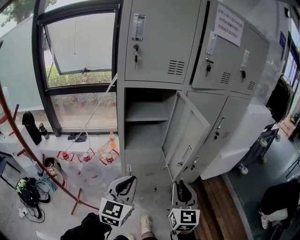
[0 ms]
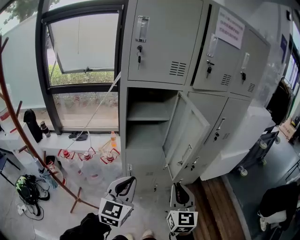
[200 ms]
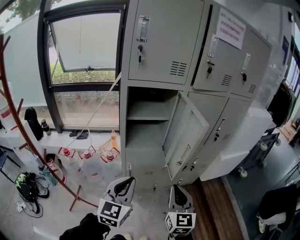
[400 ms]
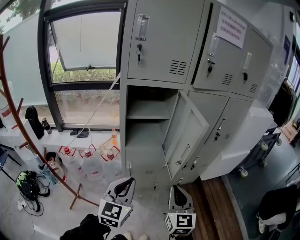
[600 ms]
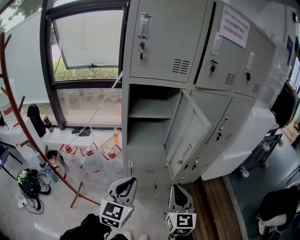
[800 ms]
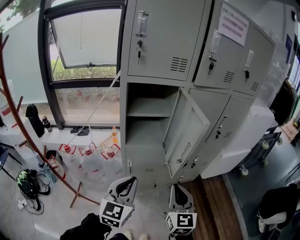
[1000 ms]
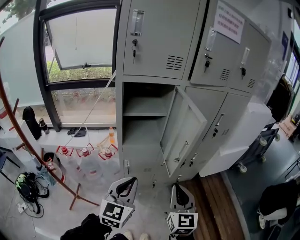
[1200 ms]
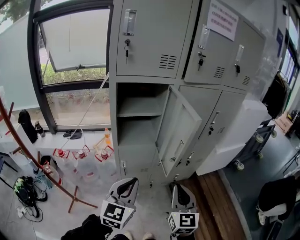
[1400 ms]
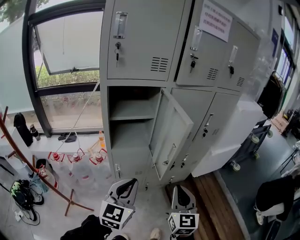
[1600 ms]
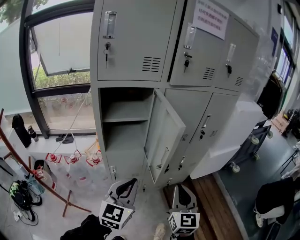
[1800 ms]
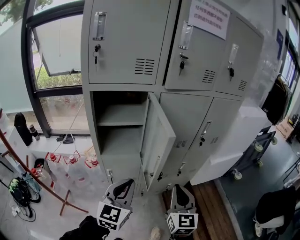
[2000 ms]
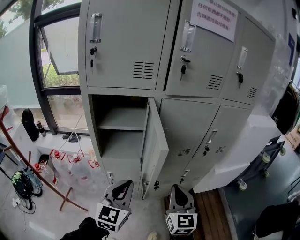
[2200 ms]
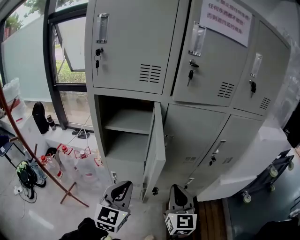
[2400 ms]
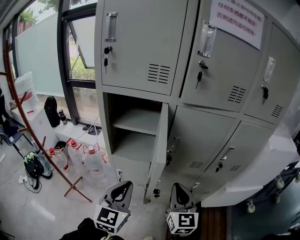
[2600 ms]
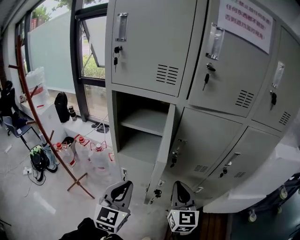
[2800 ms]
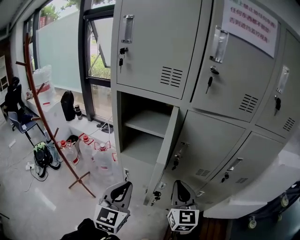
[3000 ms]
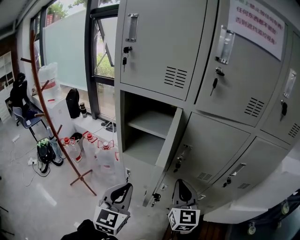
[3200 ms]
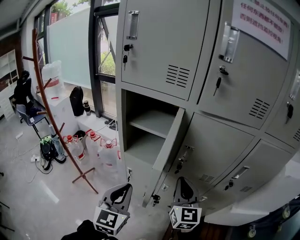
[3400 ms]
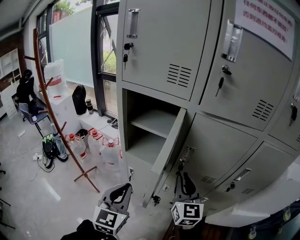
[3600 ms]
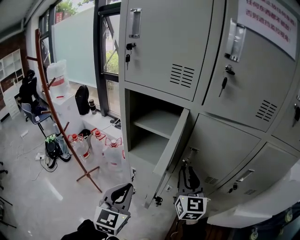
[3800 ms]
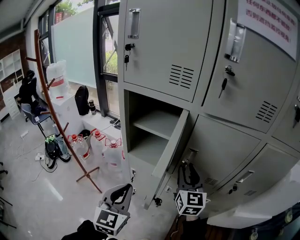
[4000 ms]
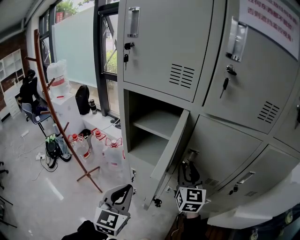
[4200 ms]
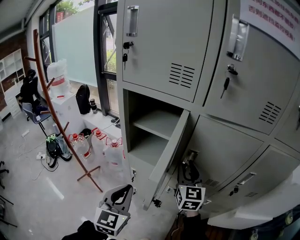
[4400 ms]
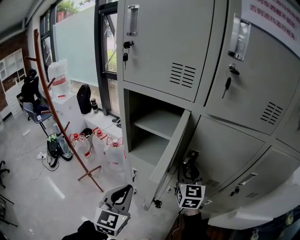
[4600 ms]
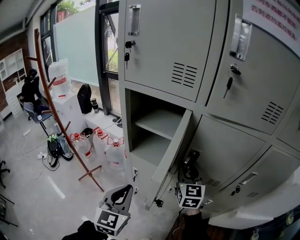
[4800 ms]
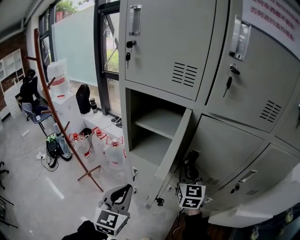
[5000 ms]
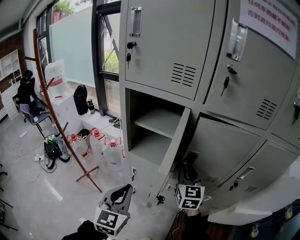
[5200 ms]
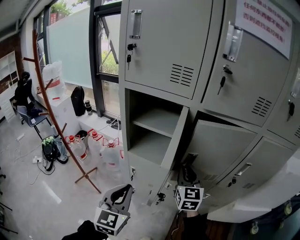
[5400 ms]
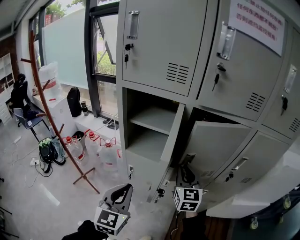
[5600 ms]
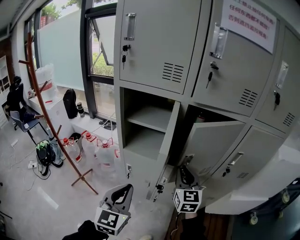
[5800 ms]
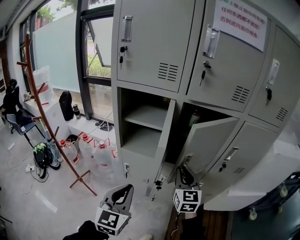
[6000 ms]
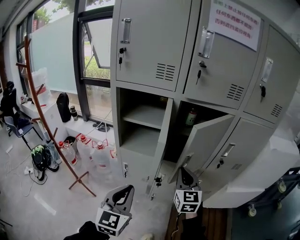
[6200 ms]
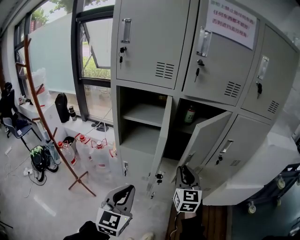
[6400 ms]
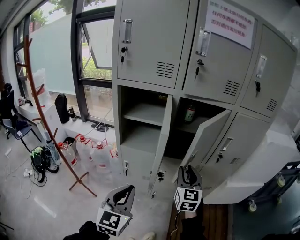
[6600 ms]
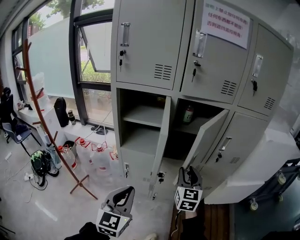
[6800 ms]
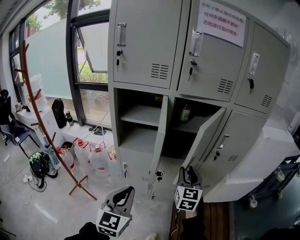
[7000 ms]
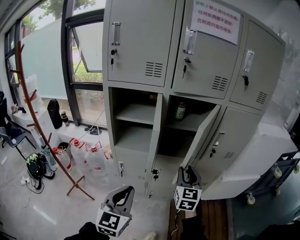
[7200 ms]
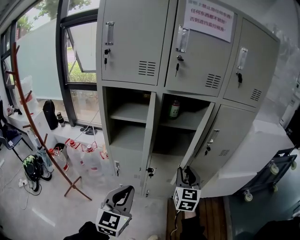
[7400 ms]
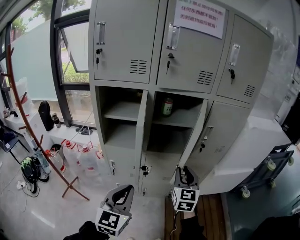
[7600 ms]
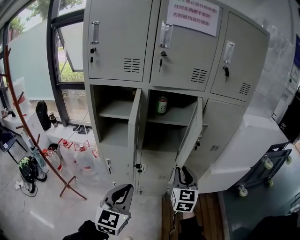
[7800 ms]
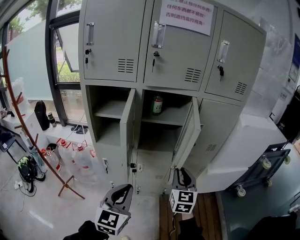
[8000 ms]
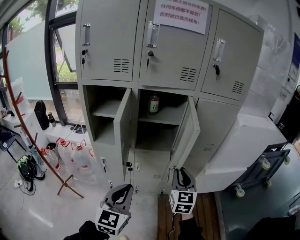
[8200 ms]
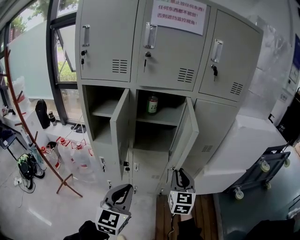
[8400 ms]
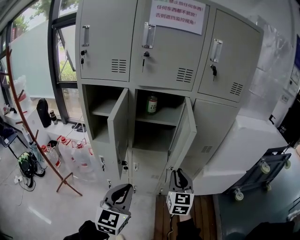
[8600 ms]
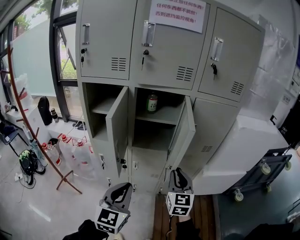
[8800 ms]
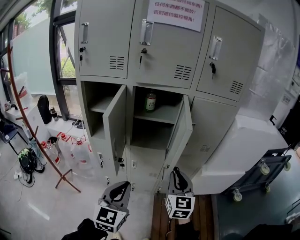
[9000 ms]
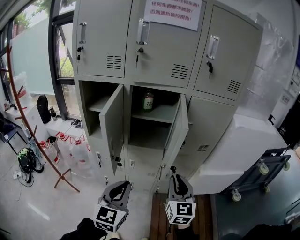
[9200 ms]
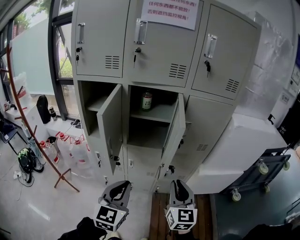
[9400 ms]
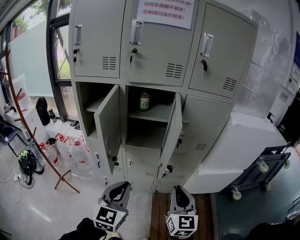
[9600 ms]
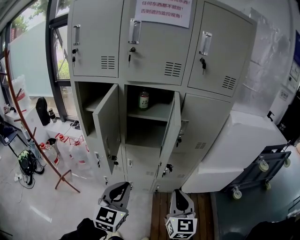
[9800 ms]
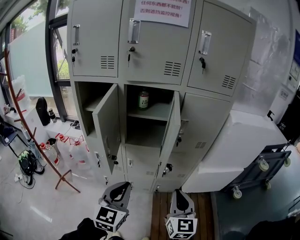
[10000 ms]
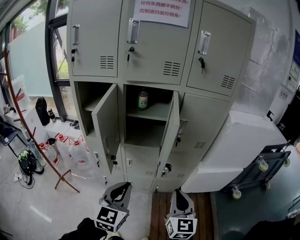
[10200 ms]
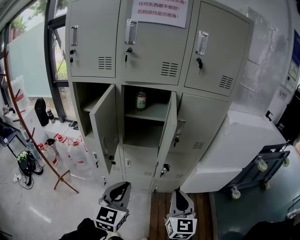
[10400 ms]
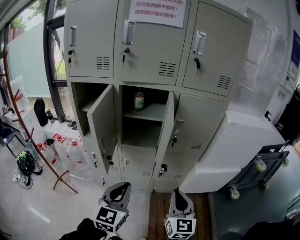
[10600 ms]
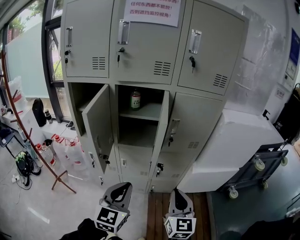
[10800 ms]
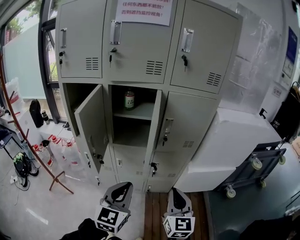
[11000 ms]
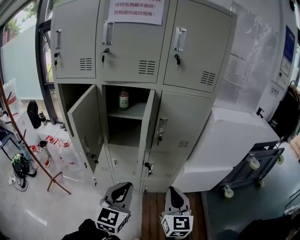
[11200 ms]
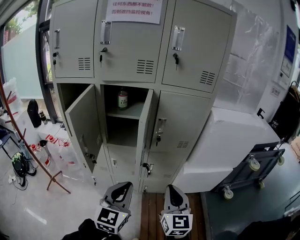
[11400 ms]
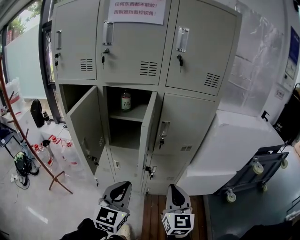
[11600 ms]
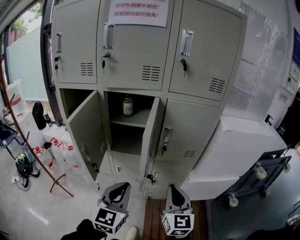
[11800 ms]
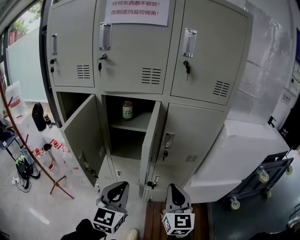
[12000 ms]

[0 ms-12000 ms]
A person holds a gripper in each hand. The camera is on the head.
0 ms to 1600 ms: Both grippers travel together to the right, approximately 5 cm.
1600 ms to 3000 ms: The left gripper moves approximately 15 cm, and turns by about 30 degrees, while the right gripper shifts by approximately 25 cm, and turns by approximately 30 degrees.
3000 ms to 4400 ms: The right gripper shifts about 15 cm forward, and opens.
4400 ms to 6000 ms: The right gripper shifts some 10 cm backward; the left gripper is displaced backward by some 10 cm.
6000 ms to 7600 ms: The right gripper travels to the right and backward by about 15 cm. Meanwhile the left gripper is displaced backward and to the right by about 10 cm.
7600 ms to 9000 ms: The two grippers go about 10 cm to the right.
9000 ms to 10400 ms: The right gripper goes roughly 10 cm backward and to the right.
10400 ms to 12000 ms: The right gripper shifts roughly 10 cm forward; the left gripper goes about 10 cm forward and to the right.

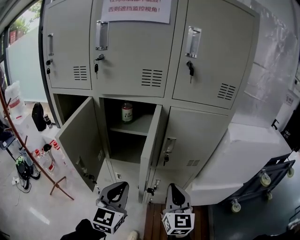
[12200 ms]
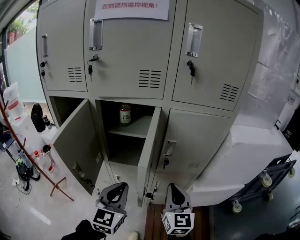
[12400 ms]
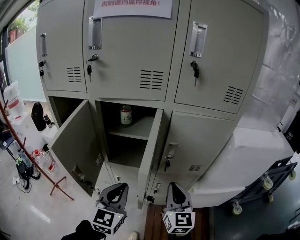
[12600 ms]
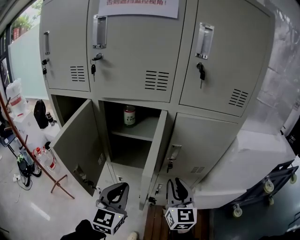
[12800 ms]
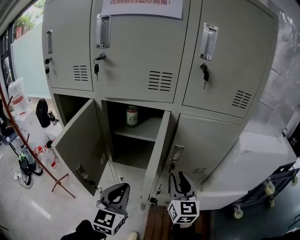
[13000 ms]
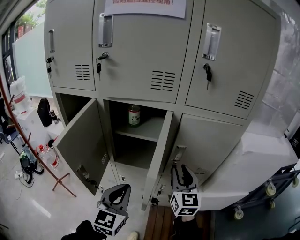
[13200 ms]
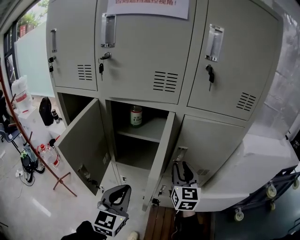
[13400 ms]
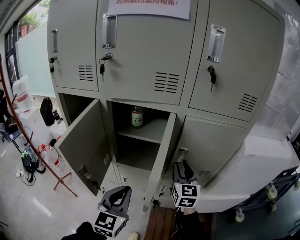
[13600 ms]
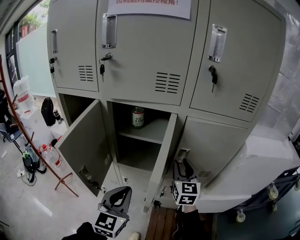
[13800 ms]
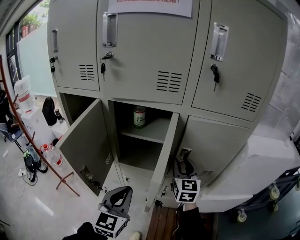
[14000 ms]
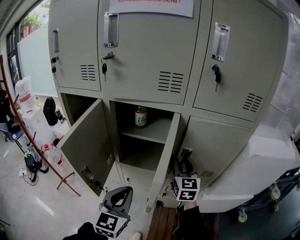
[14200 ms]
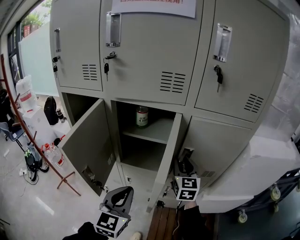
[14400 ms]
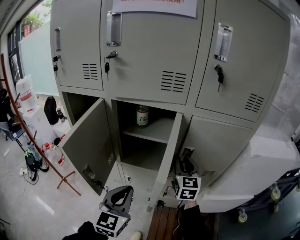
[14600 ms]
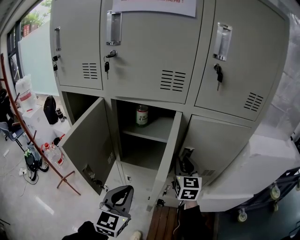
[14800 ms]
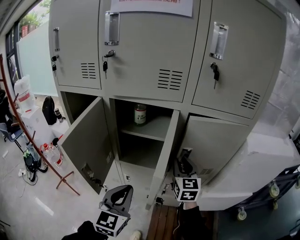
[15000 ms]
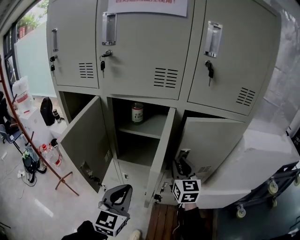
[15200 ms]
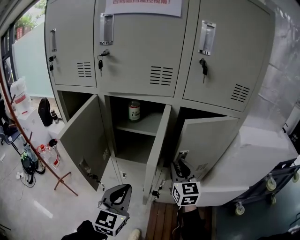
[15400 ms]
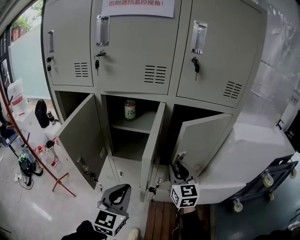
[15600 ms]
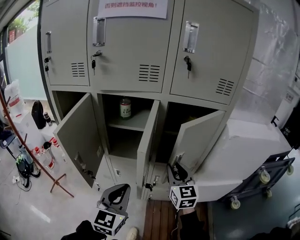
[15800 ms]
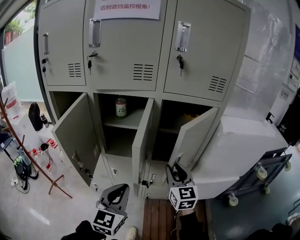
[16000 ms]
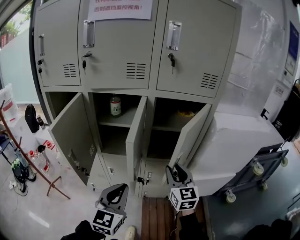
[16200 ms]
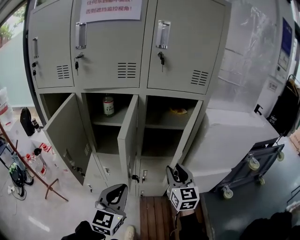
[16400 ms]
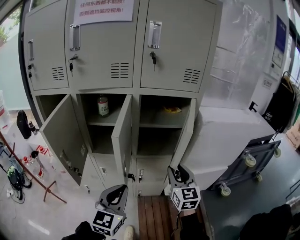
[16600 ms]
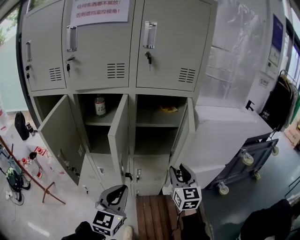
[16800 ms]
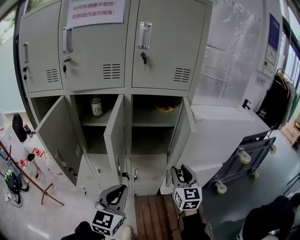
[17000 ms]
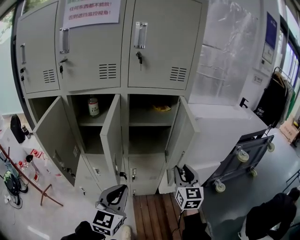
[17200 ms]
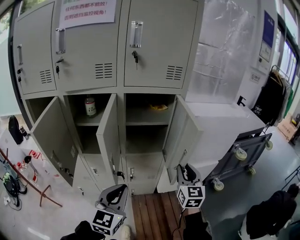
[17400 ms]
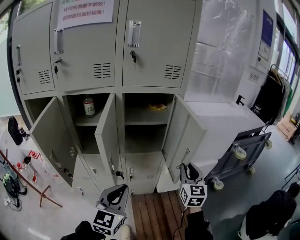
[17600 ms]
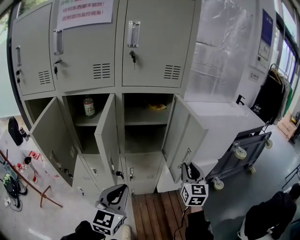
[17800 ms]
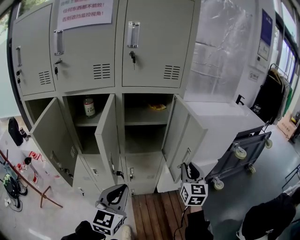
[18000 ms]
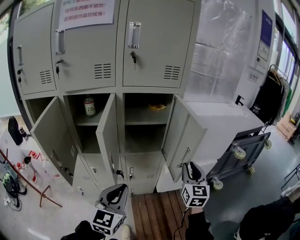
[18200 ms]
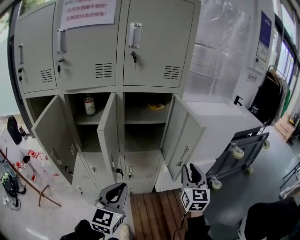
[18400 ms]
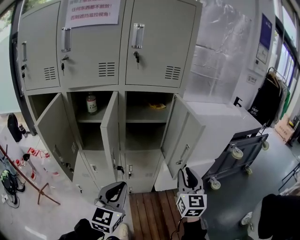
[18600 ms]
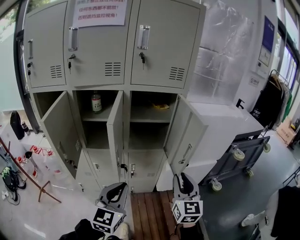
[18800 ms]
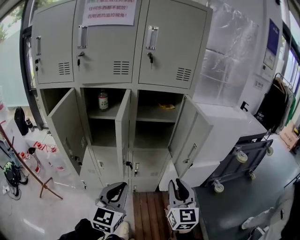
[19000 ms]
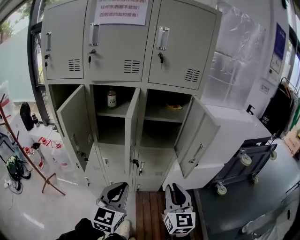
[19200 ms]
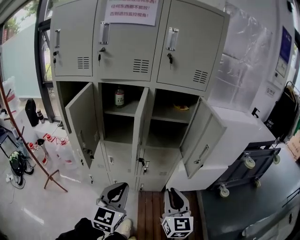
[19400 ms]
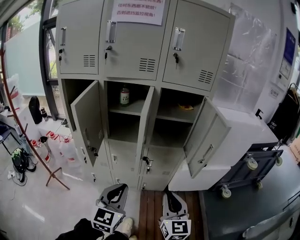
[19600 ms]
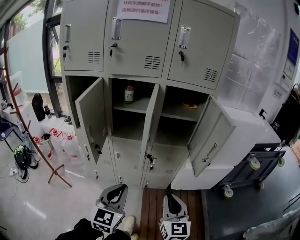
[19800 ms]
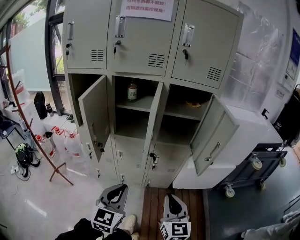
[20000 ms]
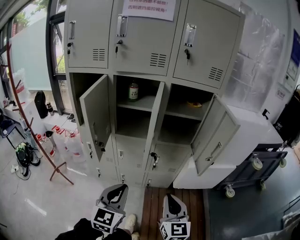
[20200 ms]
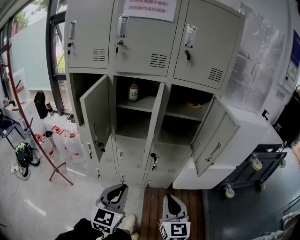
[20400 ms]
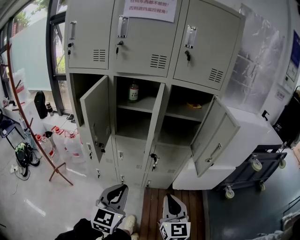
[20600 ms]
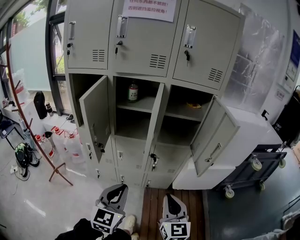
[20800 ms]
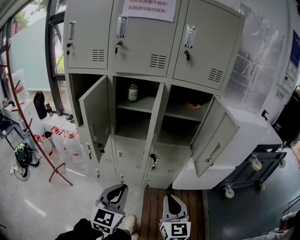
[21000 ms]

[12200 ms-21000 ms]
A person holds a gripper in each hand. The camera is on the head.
12200 ms to 13600 ms: The right gripper shifts approximately 20 cm forward, and opens up.
13600 ms to 15200 ms: The grippers stay close to where they were, moving slightly.
15200 ms to 16600 ms: The right gripper is displaced backward and to the right by about 20 cm; the left gripper travels to the right and backward by some 15 cm.
16600 ms to 18000 ms: The right gripper heads to the right, covering about 15 cm.
18000 ms to 19600 ms: The right gripper heads backward and to the left, covering roughly 25 cm. The left gripper is displaced backward and to the left by about 15 cm.
19600 ms to 21000 ms: The grippers make only small movements.

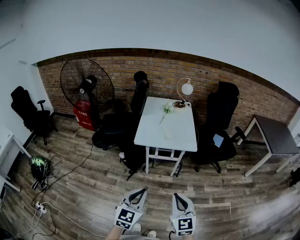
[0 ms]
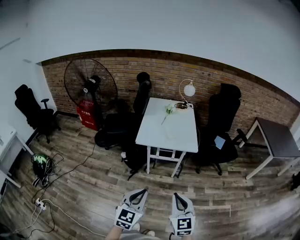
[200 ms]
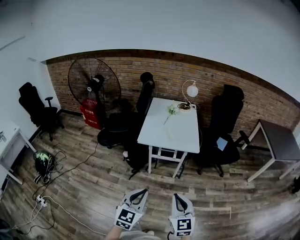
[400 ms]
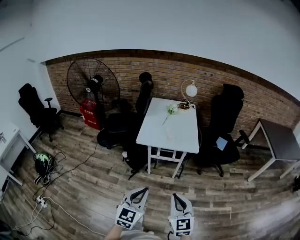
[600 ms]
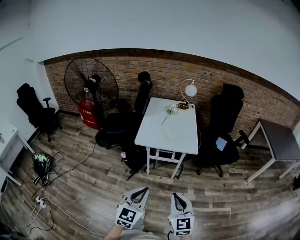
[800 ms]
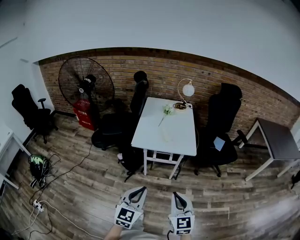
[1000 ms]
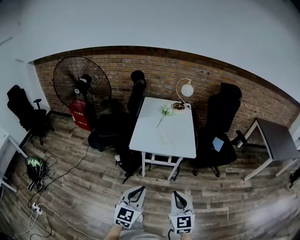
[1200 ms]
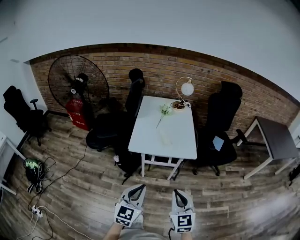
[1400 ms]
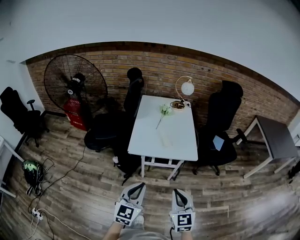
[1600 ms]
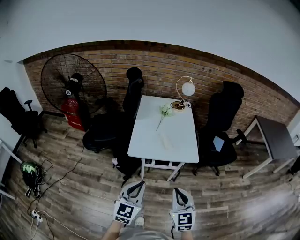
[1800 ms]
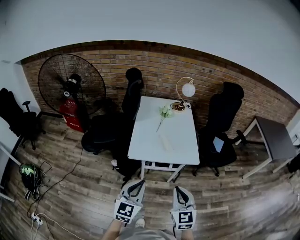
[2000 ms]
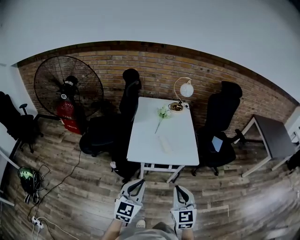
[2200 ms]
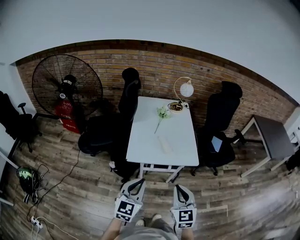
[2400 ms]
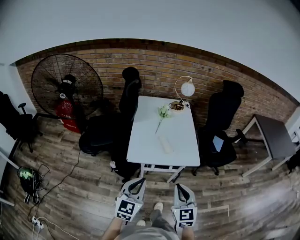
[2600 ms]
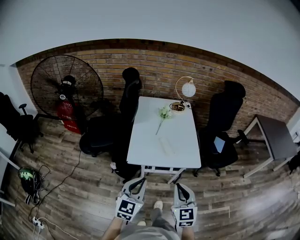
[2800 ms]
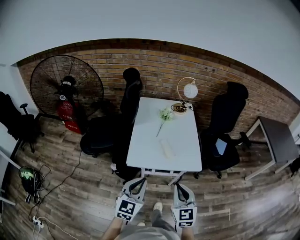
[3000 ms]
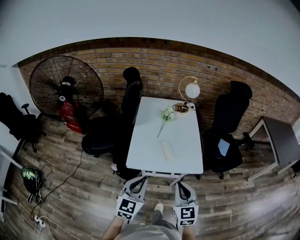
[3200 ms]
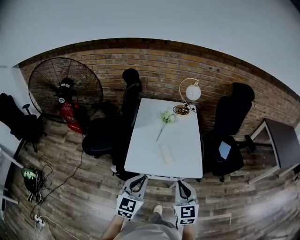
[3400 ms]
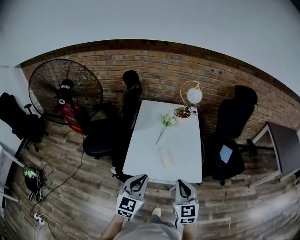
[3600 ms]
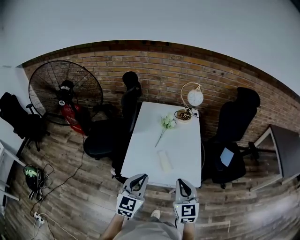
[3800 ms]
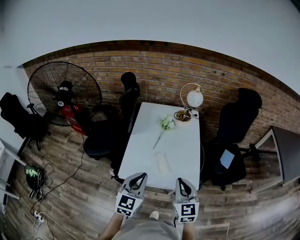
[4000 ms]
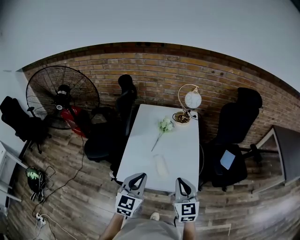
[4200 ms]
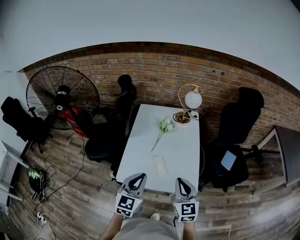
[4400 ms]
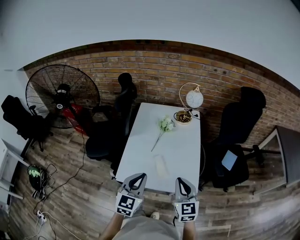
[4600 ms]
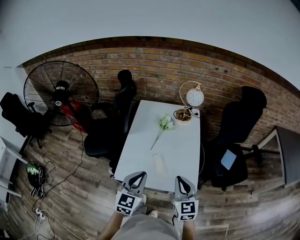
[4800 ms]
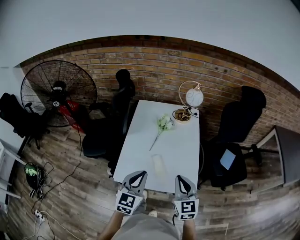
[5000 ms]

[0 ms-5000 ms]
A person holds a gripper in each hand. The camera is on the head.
0 ms to 1600 ms: Both grippers travel together forward, approximately 20 cm.
1600 ms to 3400 ms: The grippers both shift forward by approximately 20 cm.
3400 ms to 5000 ms: Both grippers travel together forward and to the right, some 15 cm.
